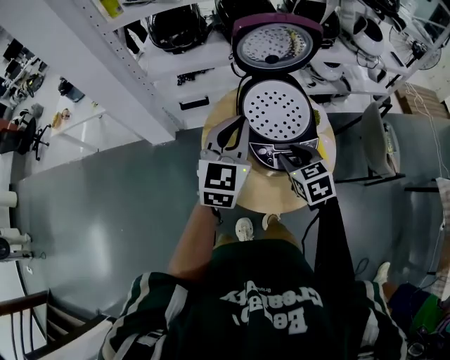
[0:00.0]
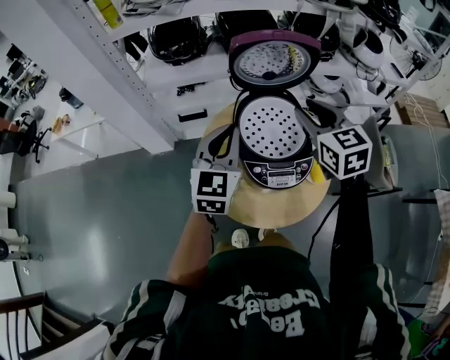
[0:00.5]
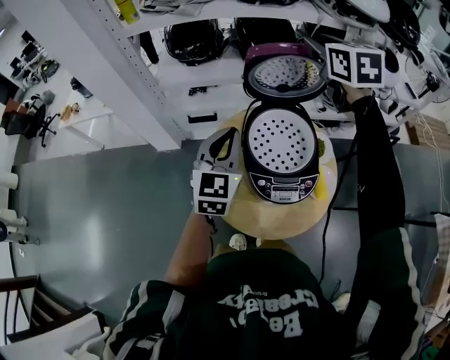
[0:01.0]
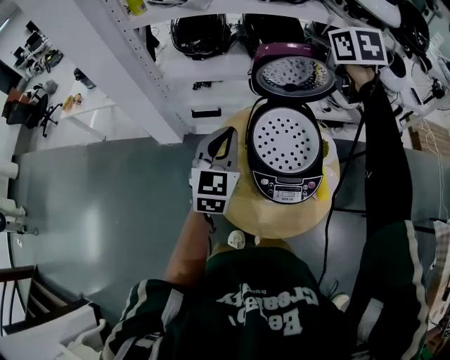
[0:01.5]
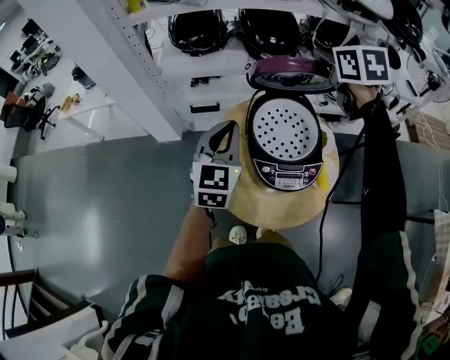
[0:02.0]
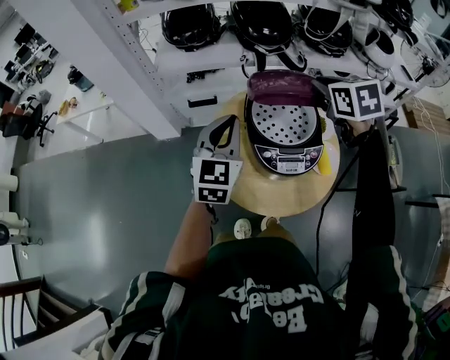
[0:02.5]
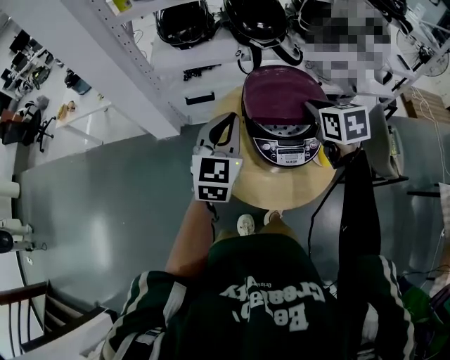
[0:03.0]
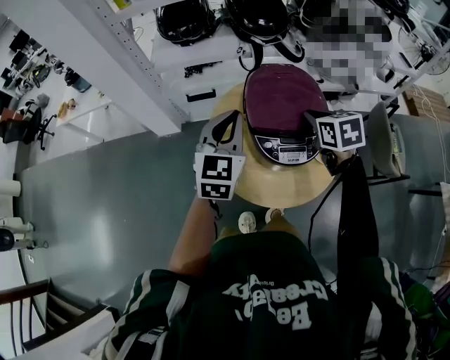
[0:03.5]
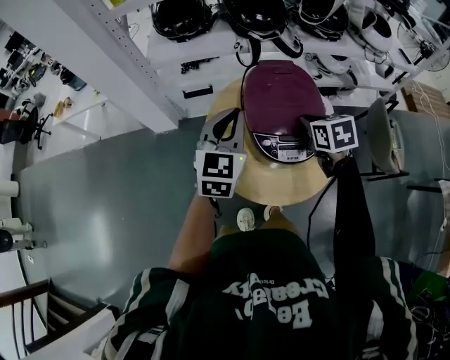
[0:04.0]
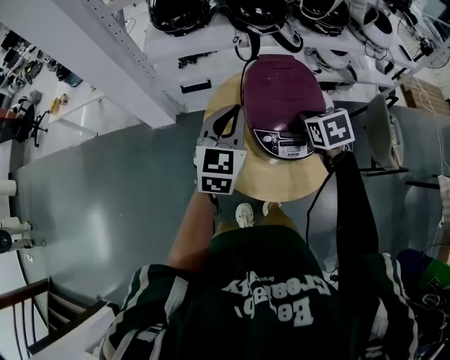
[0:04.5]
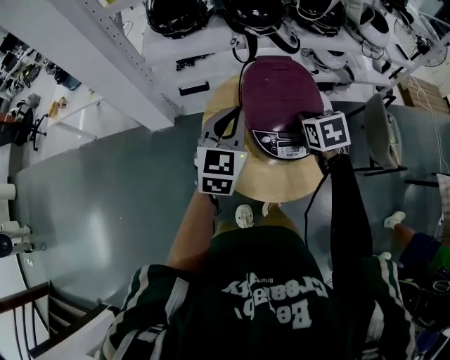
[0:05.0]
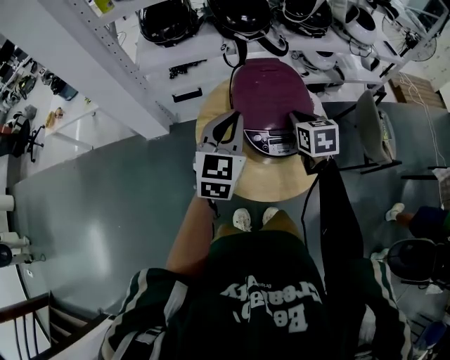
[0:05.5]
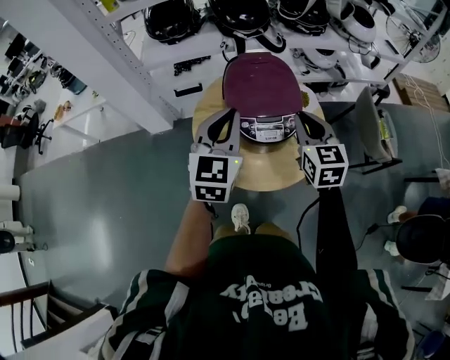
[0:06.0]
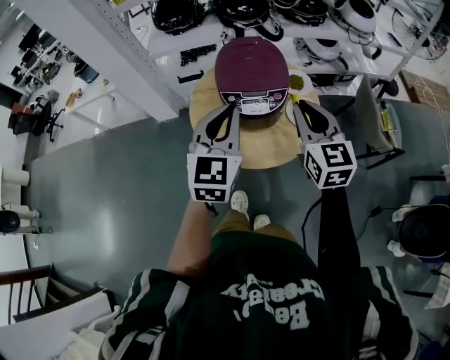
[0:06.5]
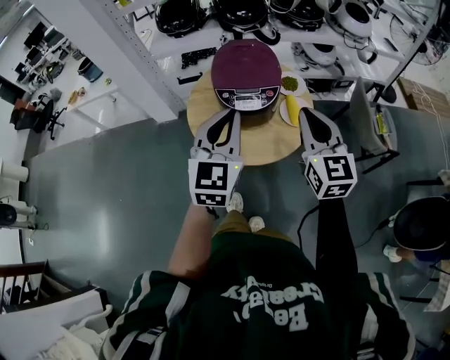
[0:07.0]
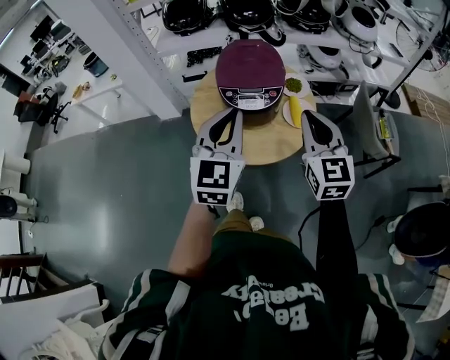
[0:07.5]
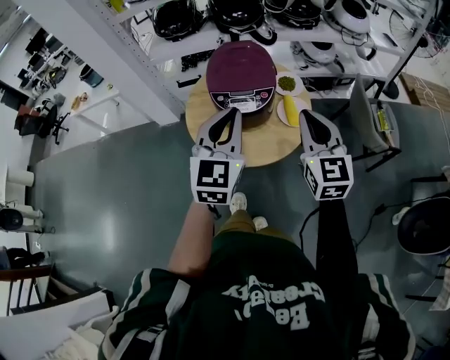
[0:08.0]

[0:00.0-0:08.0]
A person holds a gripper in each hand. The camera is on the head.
0:00.0 to 0:02.0: The left gripper changes place by approximately 5 cm, while the right gripper shifts about 35 cm forward and upward, and closes up.
0:02.0 to 0:04.0: The right gripper goes about 30 cm downward and backward.
0:04.0 to 0:06.0: The left gripper heads backward and to the right, covering about 10 cm. The right gripper moves backward and upward, approximately 10 cm, and swivels some 30 degrees.
0:06.0 to 0:08.0: The right gripper shifts roughly 20 cm backward, to the right and upward; the left gripper shifts some 15 cm backward and to the right.

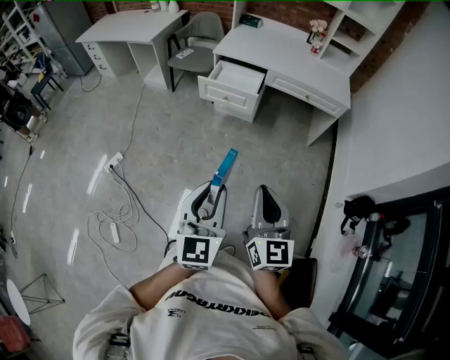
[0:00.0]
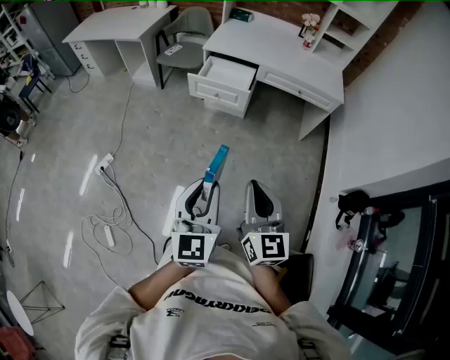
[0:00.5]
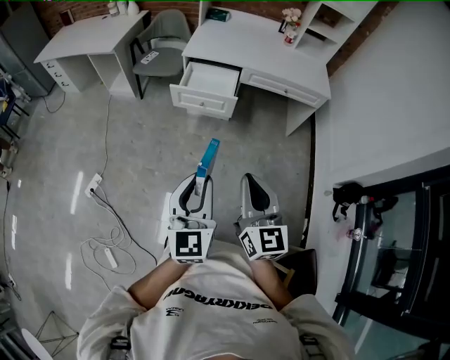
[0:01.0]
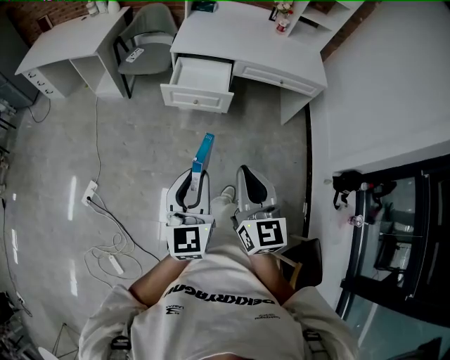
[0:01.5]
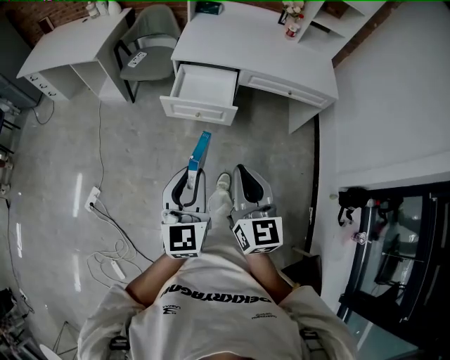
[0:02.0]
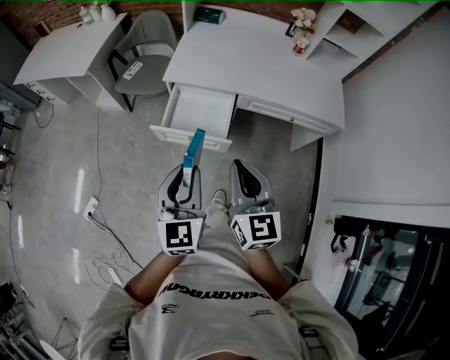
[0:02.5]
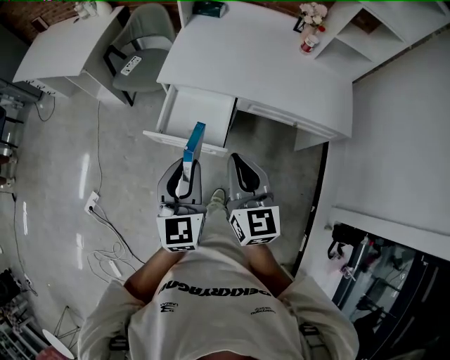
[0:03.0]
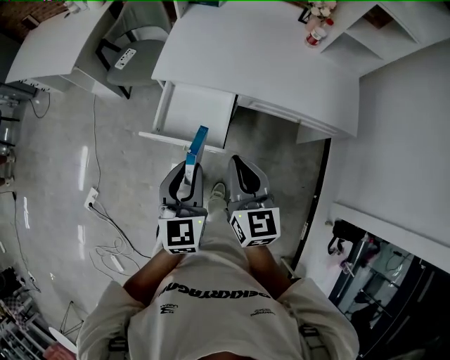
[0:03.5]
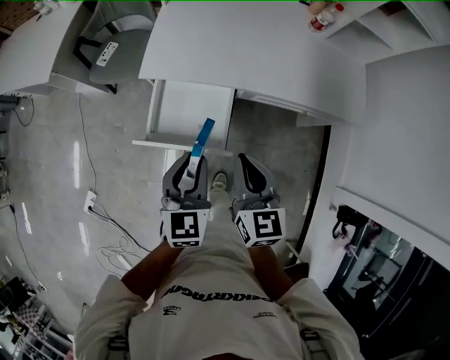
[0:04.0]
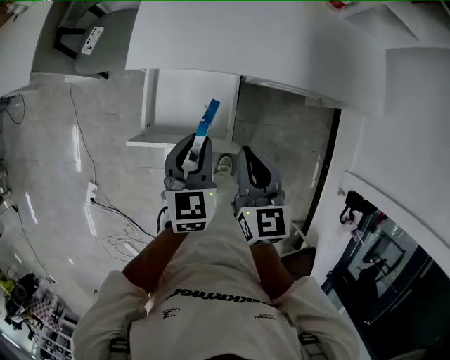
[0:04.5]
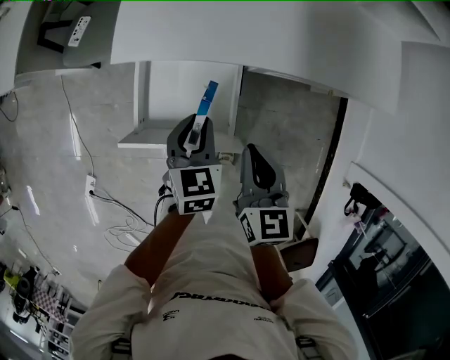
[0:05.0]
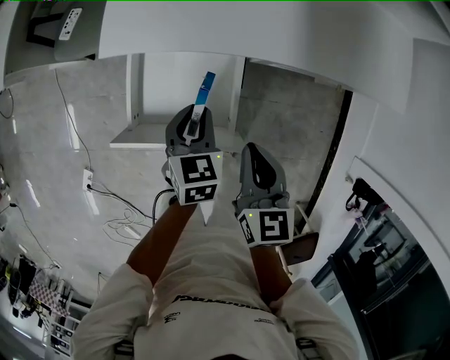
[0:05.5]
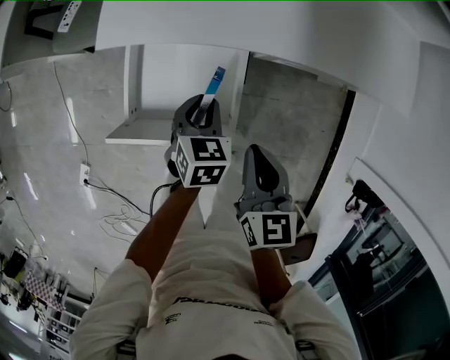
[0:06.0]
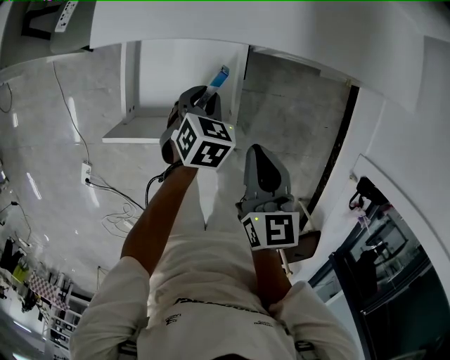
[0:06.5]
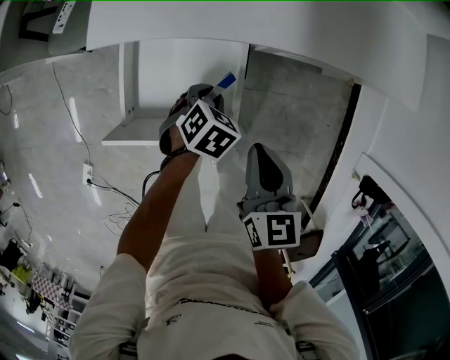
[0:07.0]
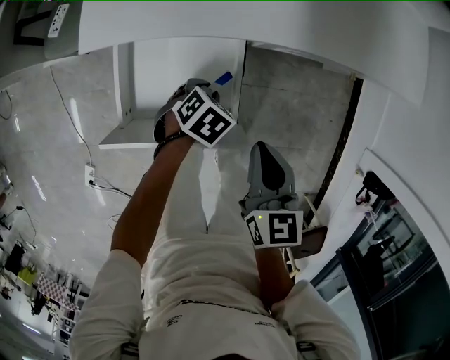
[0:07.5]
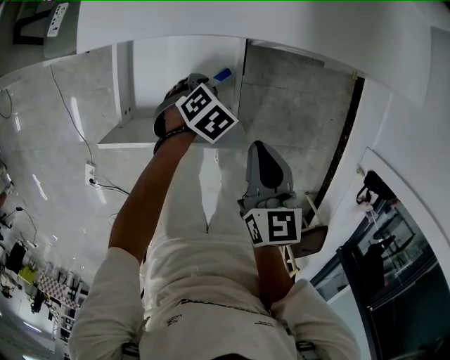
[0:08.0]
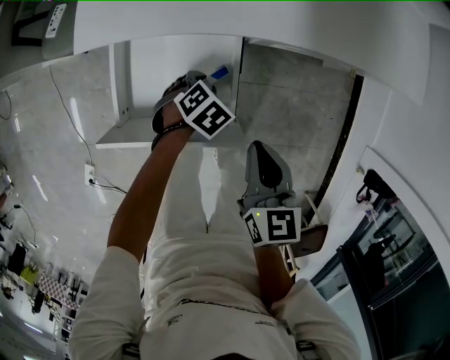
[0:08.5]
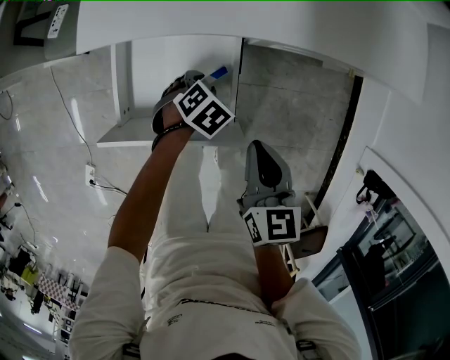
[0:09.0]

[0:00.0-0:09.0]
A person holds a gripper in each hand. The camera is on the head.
0:00.0 to 0:02.0: The grippers both shift forward by some 30 cm.
0:02.0 to 0:04.5: Both grippers are carried forward, approximately 50 cm. Both grippers travel together downward, roughly 20 cm. The left gripper swivels approximately 30 degrees; the right gripper rotates about 20 degrees.
0:04.5 to 0:07.0: The right gripper goes approximately 15 cm downward, while the left gripper goes about 25 cm downward, and tilts its fingers some 30 degrees downward.
0:07.0 to 0:09.0: The left gripper is displaced downward by roughly 5 cm.

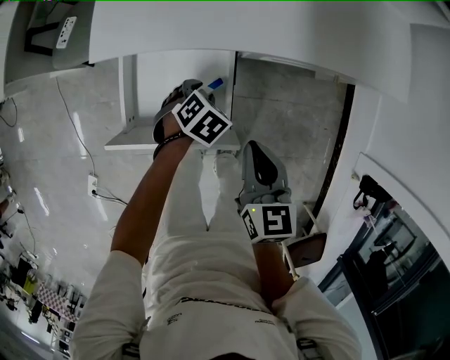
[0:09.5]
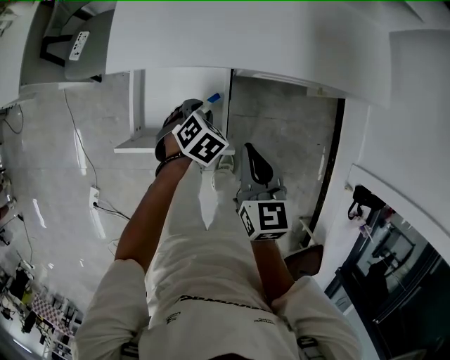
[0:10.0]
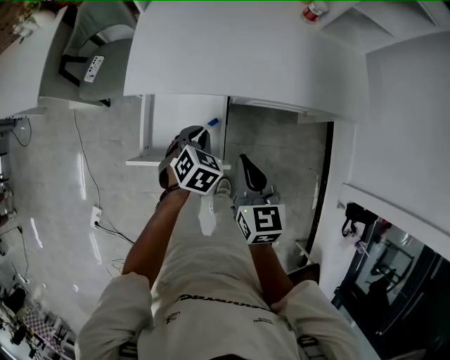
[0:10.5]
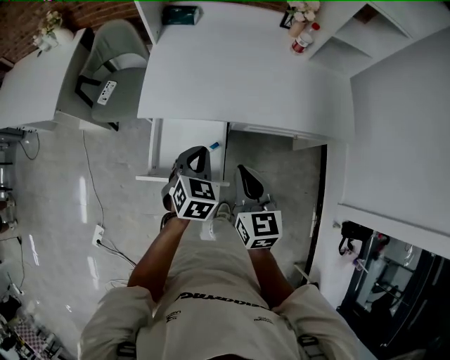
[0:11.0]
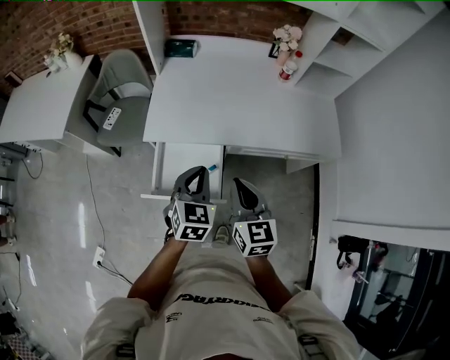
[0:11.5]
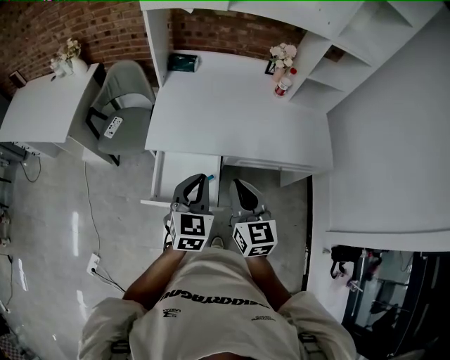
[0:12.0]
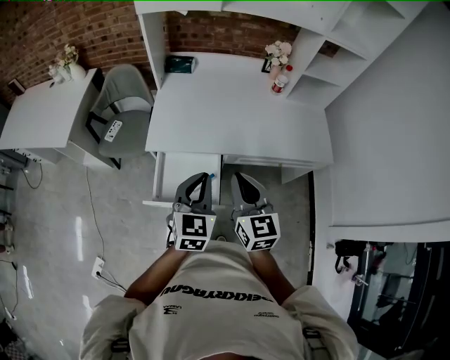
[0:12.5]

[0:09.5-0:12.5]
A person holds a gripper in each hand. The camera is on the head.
0:09.5 to 0:11.0: The right gripper shifts roughly 20 cm upward. The left gripper heads upward, covering some 30 cm, tilts its fingers approximately 30 degrees upward, and closes up.
0:11.0 to 0:12.5: Both grippers travel together upward, some 15 cm. The left gripper turns by roughly 20 degrees.

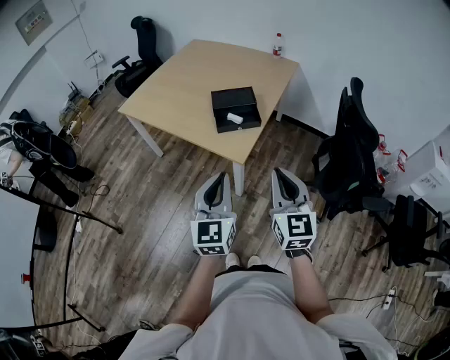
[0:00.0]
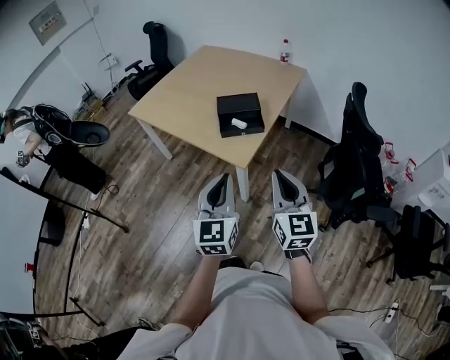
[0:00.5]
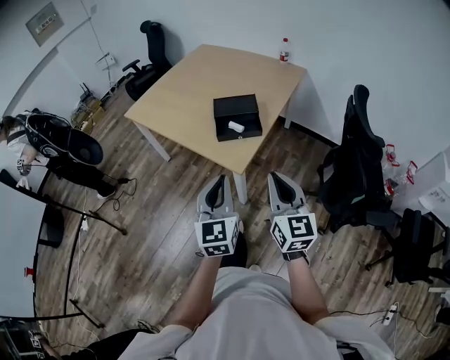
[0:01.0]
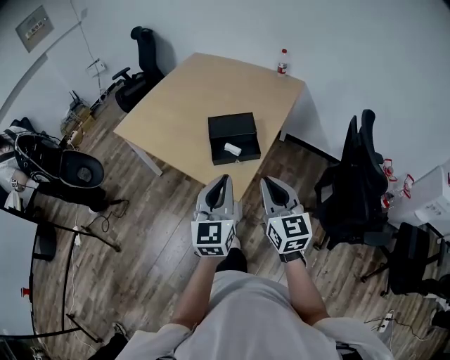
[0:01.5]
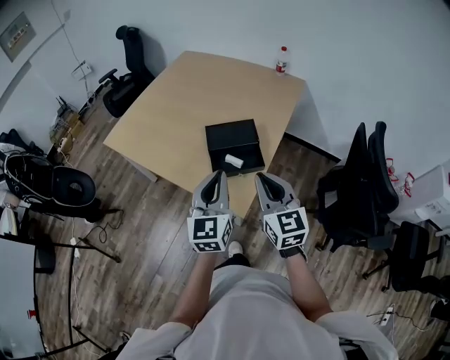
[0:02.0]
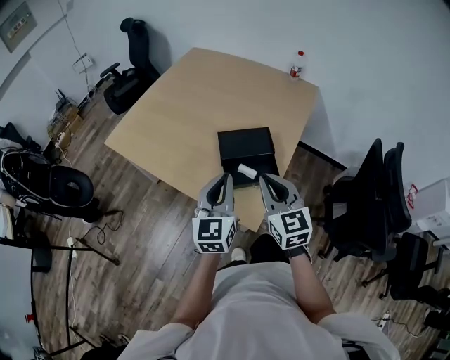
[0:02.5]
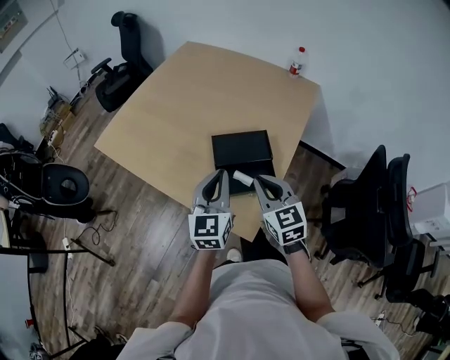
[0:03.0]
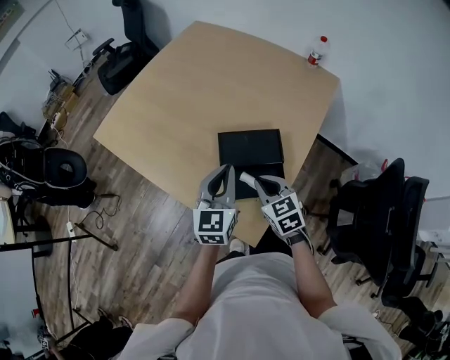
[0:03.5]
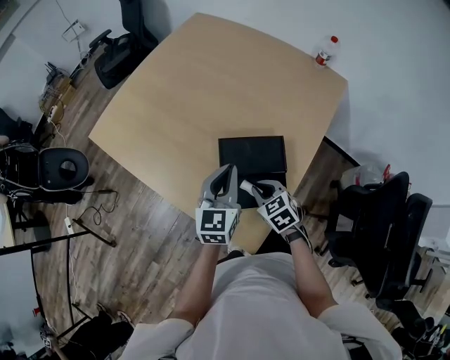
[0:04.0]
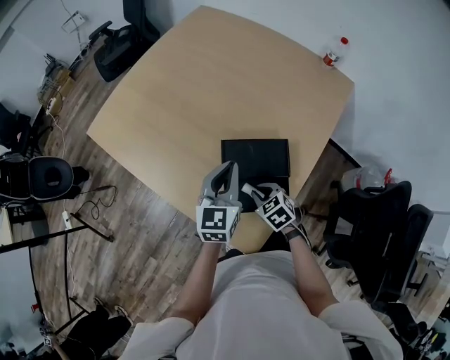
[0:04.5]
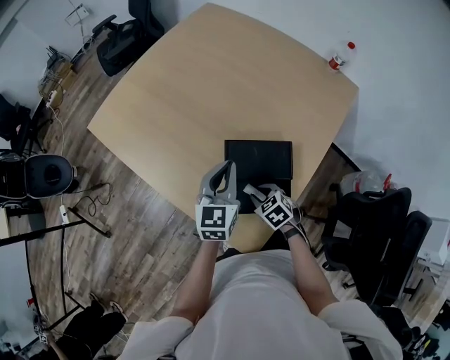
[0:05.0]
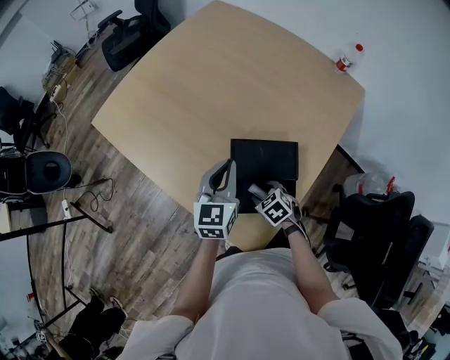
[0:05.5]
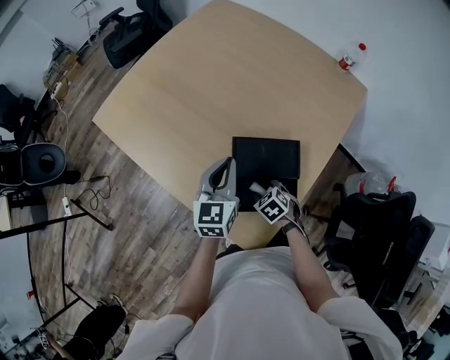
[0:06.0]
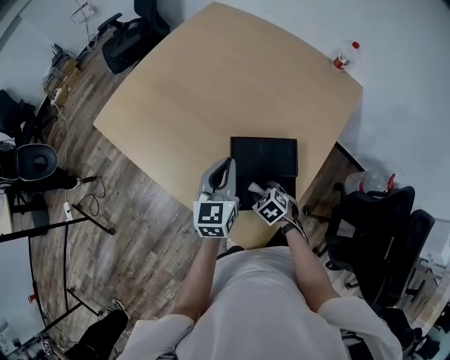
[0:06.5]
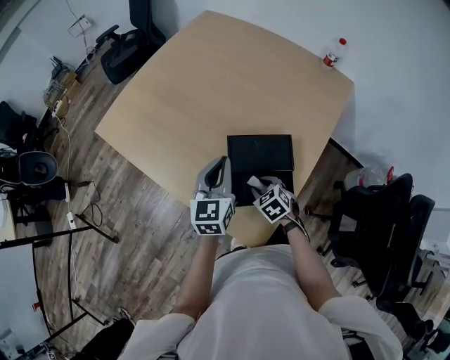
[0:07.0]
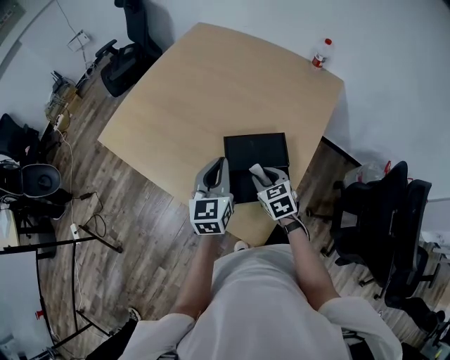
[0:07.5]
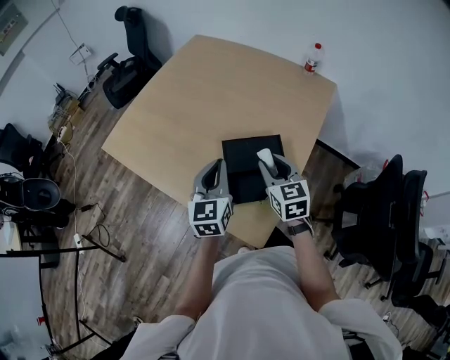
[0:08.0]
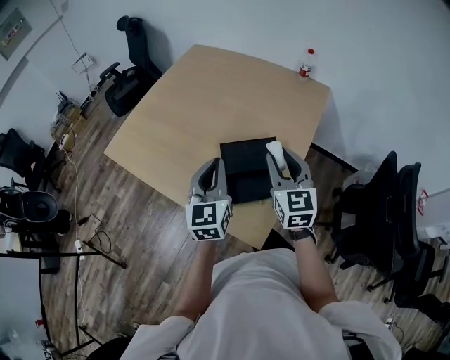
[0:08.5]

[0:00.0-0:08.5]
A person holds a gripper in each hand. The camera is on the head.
0:00.0 to 0:02.0: Both grippers move forward, roughly 25 cm.
0:02.0 to 0:04.0: The right gripper heads downward and forward, covering some 35 cm, and points its fingers roughly 40 degrees further downward. The left gripper travels forward and downward by roughly 30 cm.
0:04.0 to 0:06.5: The right gripper shifts about 10 cm downward, and opens its fingers. The left gripper changes place by some 5 cm.
0:06.5 to 0:08.5: The left gripper heads upward and backward, covering about 15 cm. The right gripper heads upward, covering approximately 35 cm, and tilts its fingers some 60 degrees upward.
